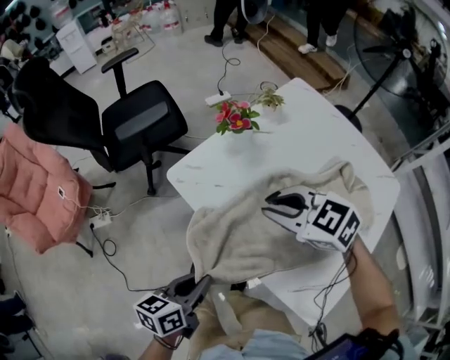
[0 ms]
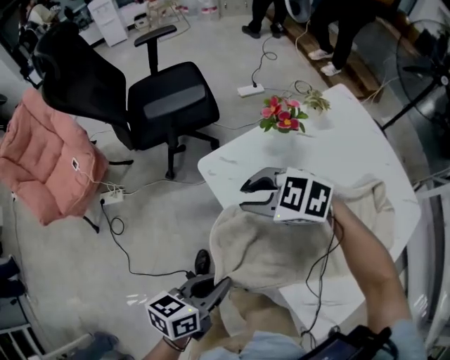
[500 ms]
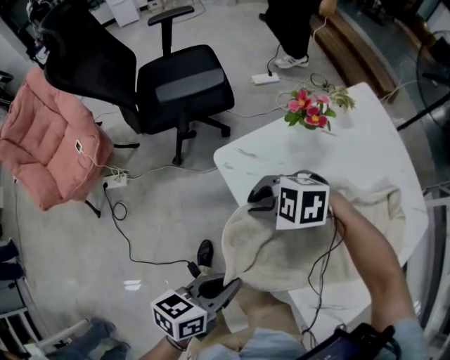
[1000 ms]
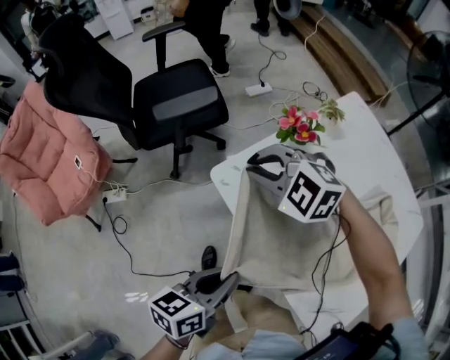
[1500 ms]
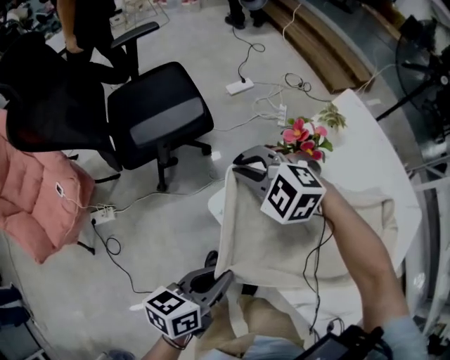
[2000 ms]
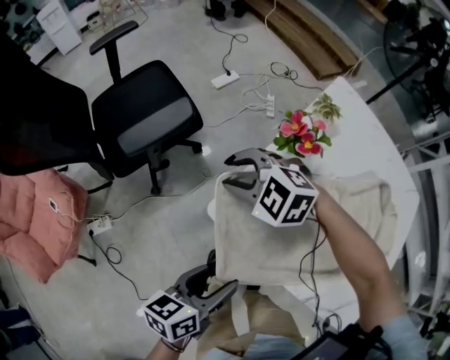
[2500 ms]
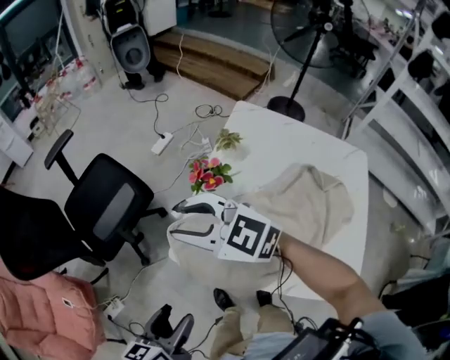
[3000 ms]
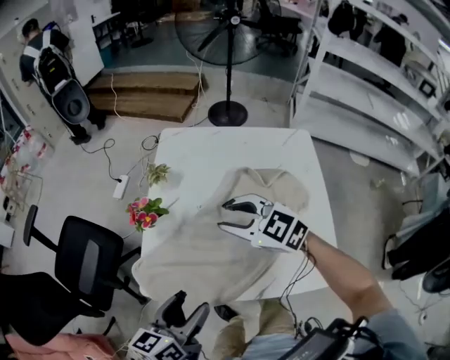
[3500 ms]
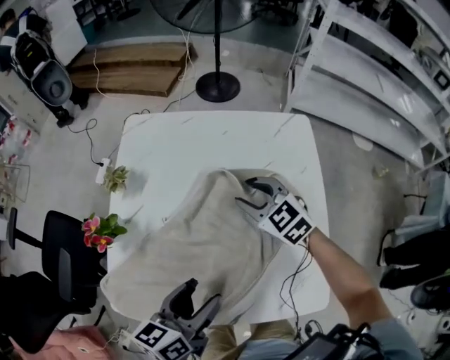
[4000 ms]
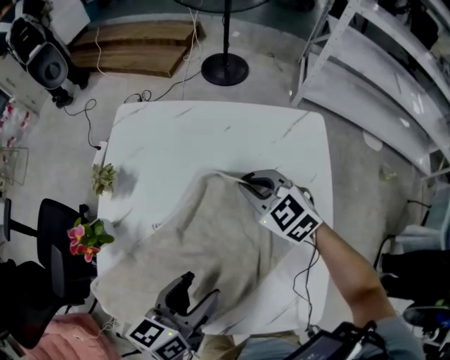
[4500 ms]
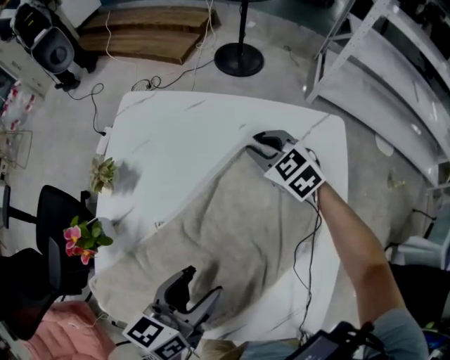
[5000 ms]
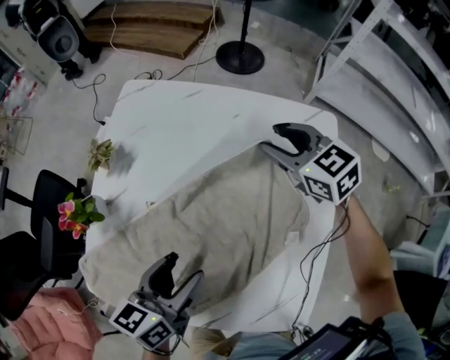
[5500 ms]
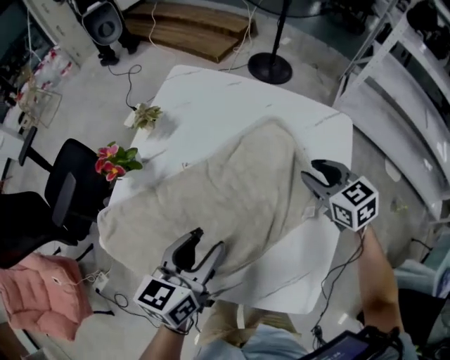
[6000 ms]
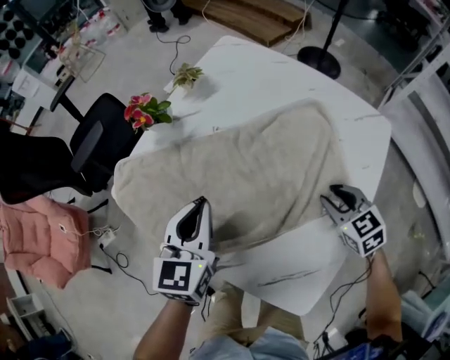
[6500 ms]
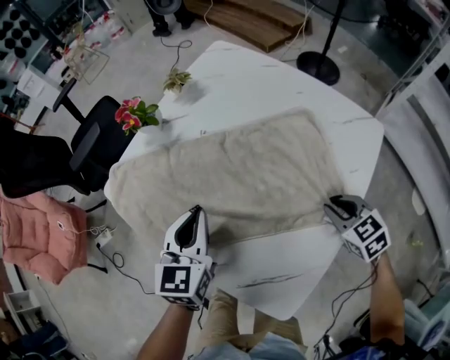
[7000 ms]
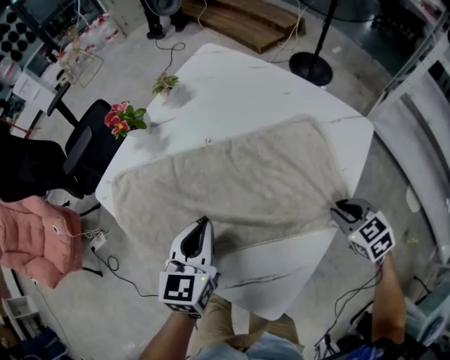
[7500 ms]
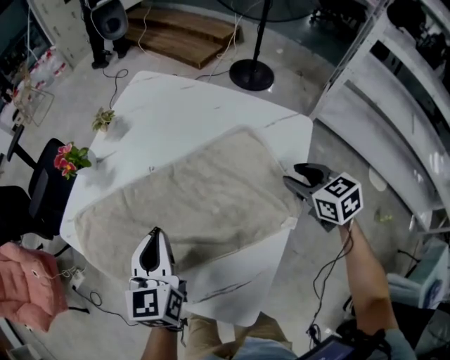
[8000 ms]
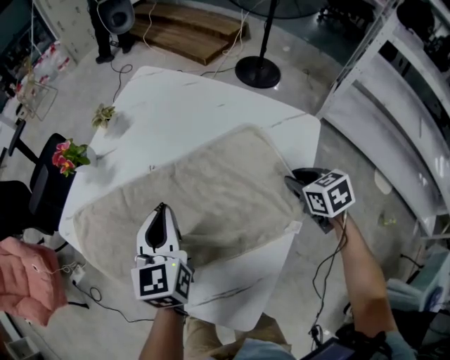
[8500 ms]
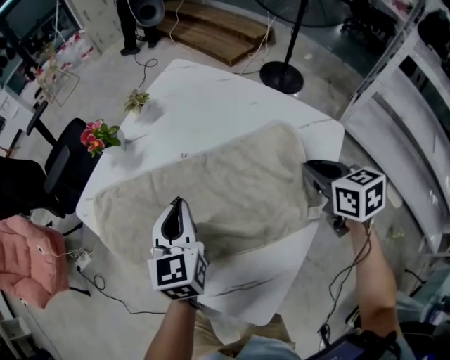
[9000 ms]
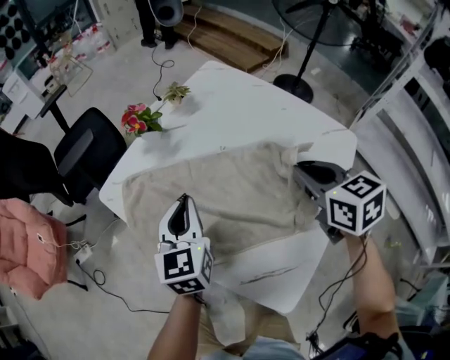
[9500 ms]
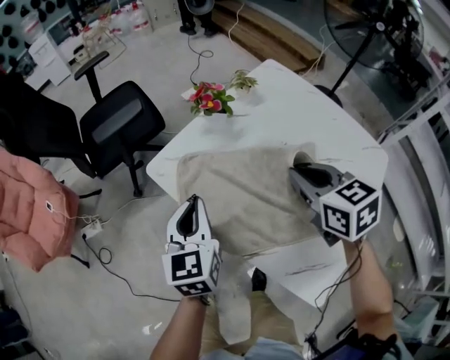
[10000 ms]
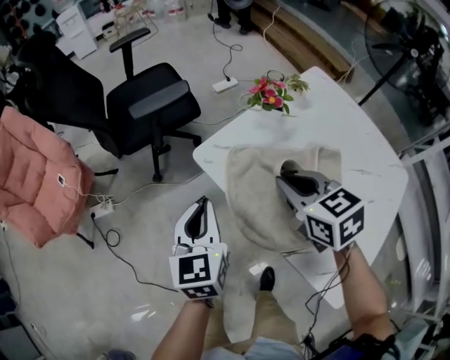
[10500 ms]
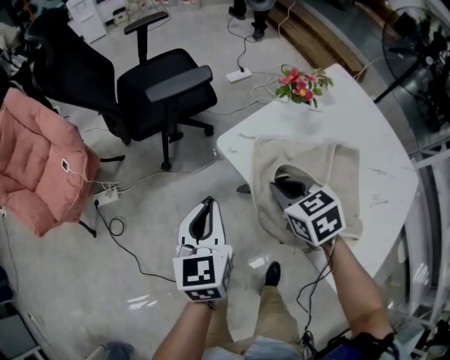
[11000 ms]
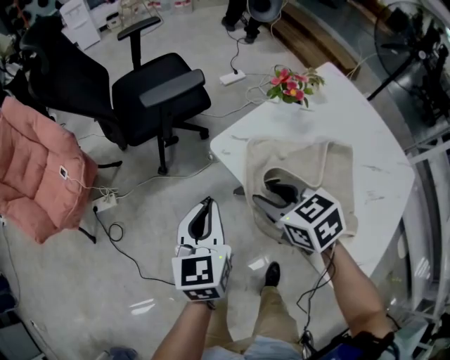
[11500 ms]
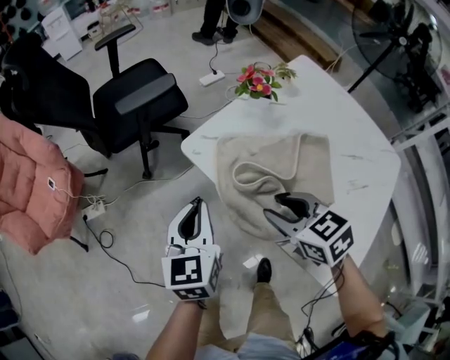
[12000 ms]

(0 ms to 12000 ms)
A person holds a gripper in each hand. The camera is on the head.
0 ms - 2000 ms: The left gripper ends up roughly 15 cm from where it was. Meanwhile the right gripper swings up and down, roughly 15 cm each way, with 2 reversals, and rotates about 30 degrees.
2000 ms - 4000 ms: The left gripper moves about 30 cm, changes its angle by some 40 degrees, and opens up. The right gripper moves about 15 cm upward and comes back, turns by some 80 degrees, and opens up.
4000 ms - 6000 ms: The left gripper reaches about 10 cm forward, then returns, and swivels some 20 degrees. The right gripper travels to the right by roughly 10 cm, travels forward and back again, some 15 cm each way, and closes and opens again.
6000 ms - 8000 ms: The left gripper changes place by approximately 5 cm, rotates approximately 30 degrees, and closes its fingers, while the right gripper travels downward and back again, about 10 cm each way.
8000 ms - 10000 ms: The left gripper shifts about 25 cm to the left. The right gripper shifts approximately 40 cm to the left, and closes its fingers.
10000 ms - 12000 ms: The right gripper goes approximately 20 cm to the left and downward, and opens. Meanwhile the left gripper shifts some 10 cm to the left.

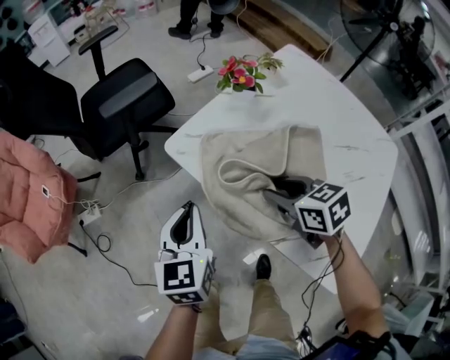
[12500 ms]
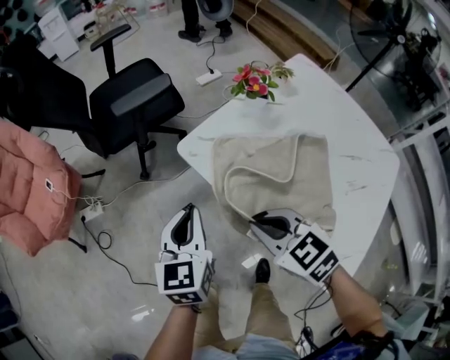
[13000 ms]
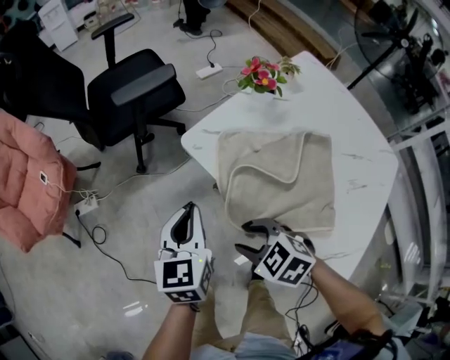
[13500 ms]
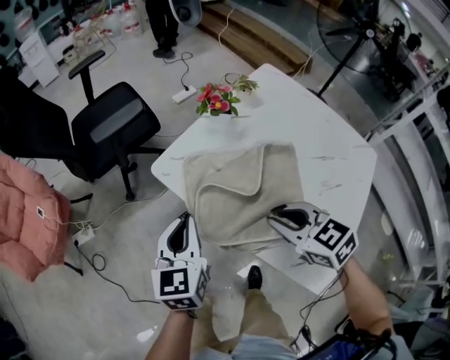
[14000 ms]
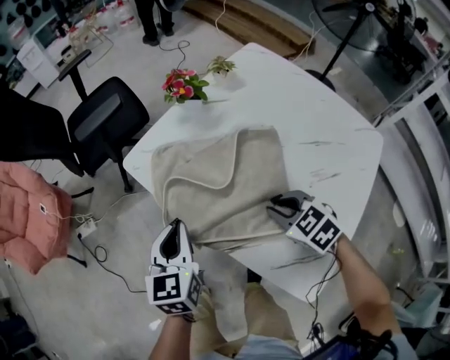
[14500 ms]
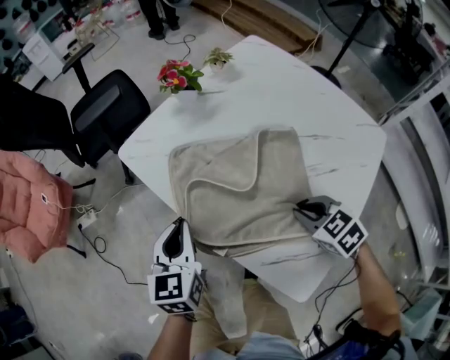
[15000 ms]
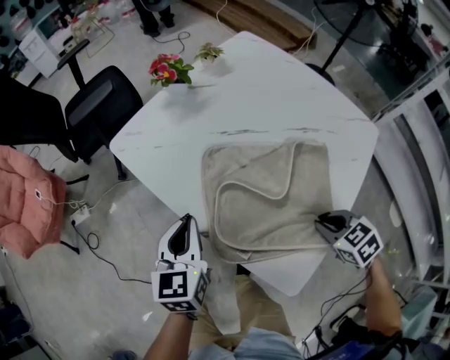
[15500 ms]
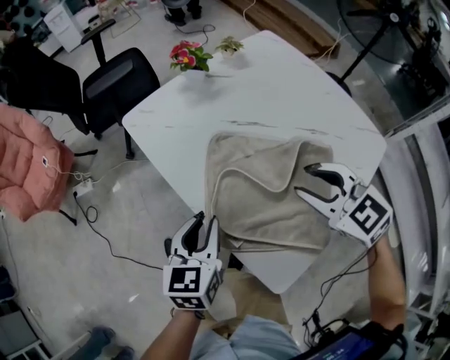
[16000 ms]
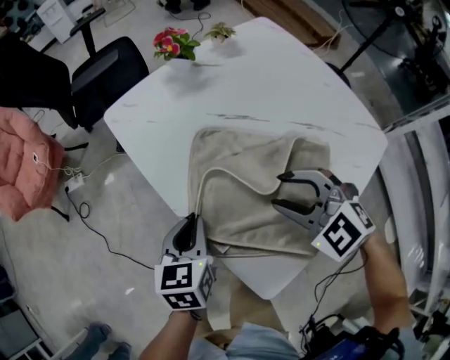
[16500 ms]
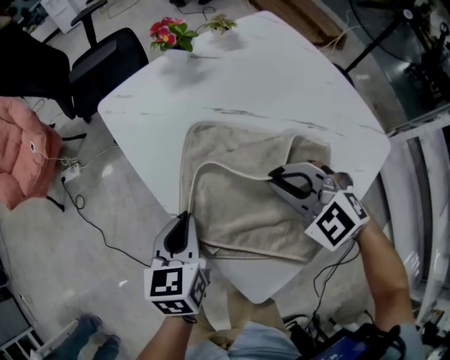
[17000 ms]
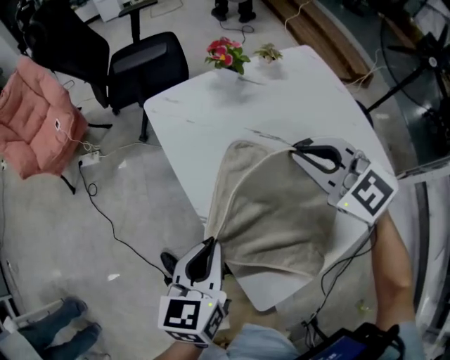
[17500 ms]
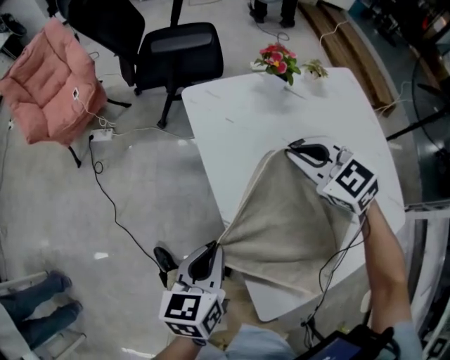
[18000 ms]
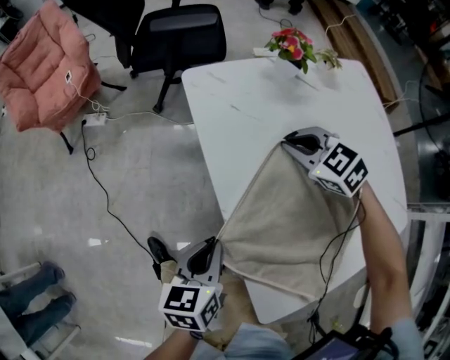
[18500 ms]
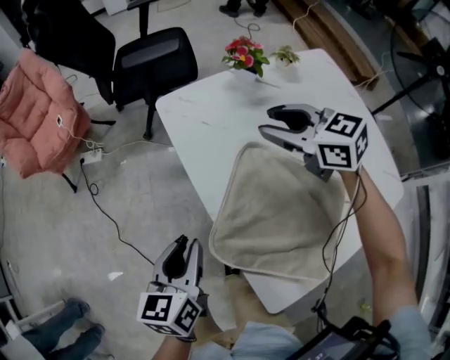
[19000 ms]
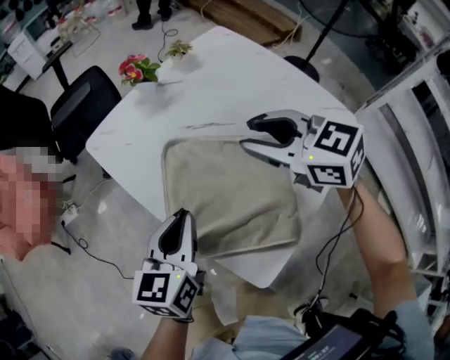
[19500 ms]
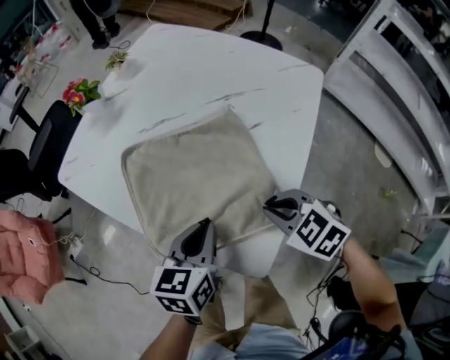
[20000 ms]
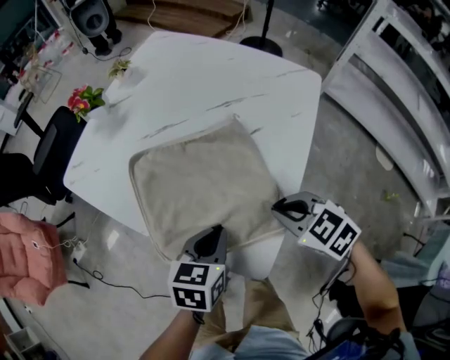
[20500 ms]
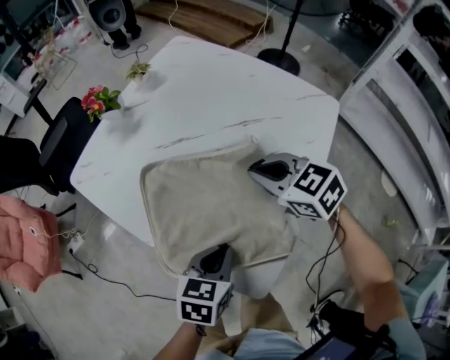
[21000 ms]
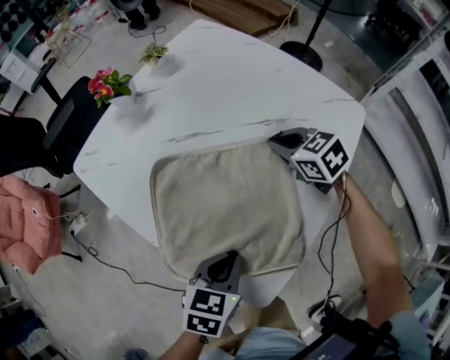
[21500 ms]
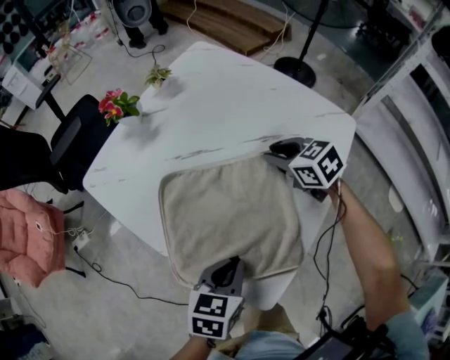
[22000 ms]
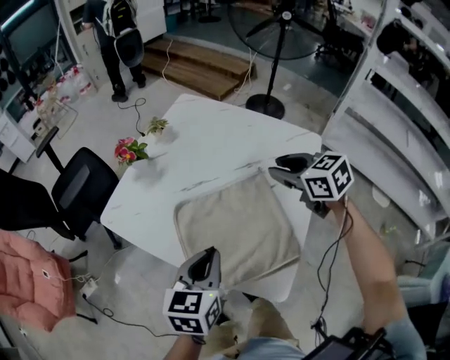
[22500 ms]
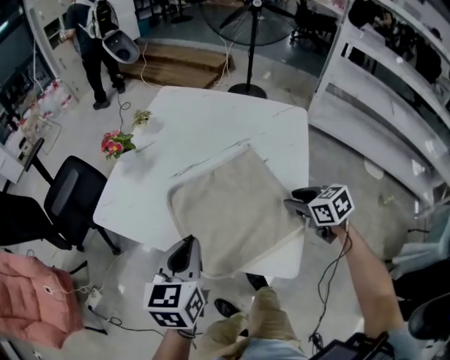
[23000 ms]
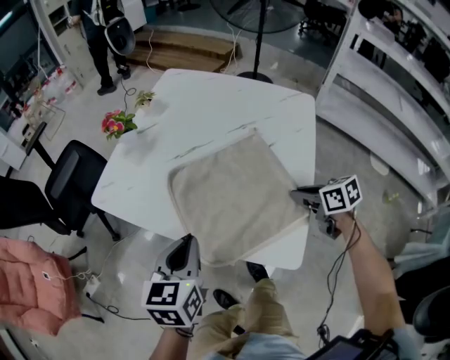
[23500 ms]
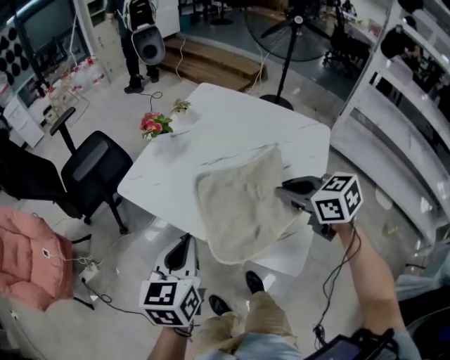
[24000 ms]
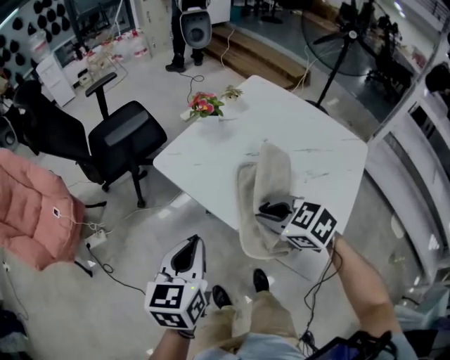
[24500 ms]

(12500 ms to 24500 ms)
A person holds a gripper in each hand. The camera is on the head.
12500 ms - 14500 ms: The grippers both shift to the right and backward by some 10 cm. The right gripper changes its angle by about 20 degrees, and closes.
14500 ms - 16500 ms: The left gripper goes approximately 15 cm backward and to the right. The right gripper shifts roughly 10 cm upward, travels backward and back again, some 15 cm each way, changes its angle by some 40 degrees, and opens up.
16500 ms - 18500 ms: The right gripper is displaced forward by roughly 20 cm, and closes up, while the left gripper goes about 5 cm to the left, travels upward and back again, approximately 10 cm each way, and changes its angle by about 20 degrees.
18500 ms - 20500 ms: The right gripper travels upward and back again, some 15 cm each way, twists some 40 degrees clockwise, seen from behind, and opens and closes again, while the left gripper goes upward and returns, about 10 cm each way, and turns by approximately 60 degrees.
20500 ms - 22500 ms: The right gripper shifts some 25 cm forward and upward, rotates roughly 20 degrees, and opens up; the left gripper heads upward, to the left and forward, covering about 15 cm.
22500 ms - 24500 ms: The left gripper ends up some 20 cm from where it was; the right gripper goes up and down, some 15 cm each way, reversing 2 times, swivels some 30 degrees, and closes its fingers.

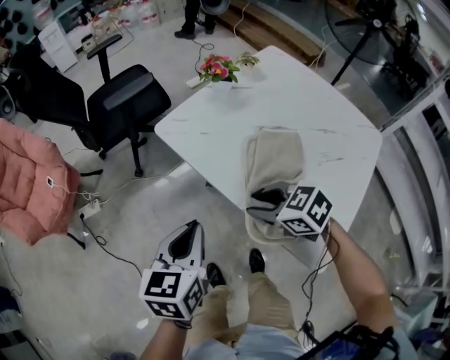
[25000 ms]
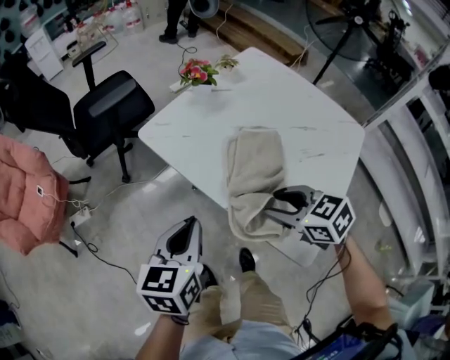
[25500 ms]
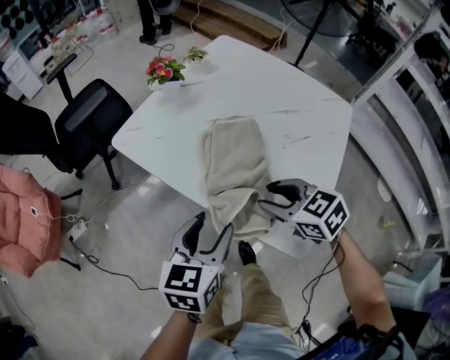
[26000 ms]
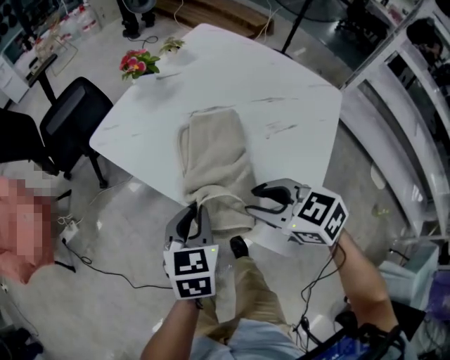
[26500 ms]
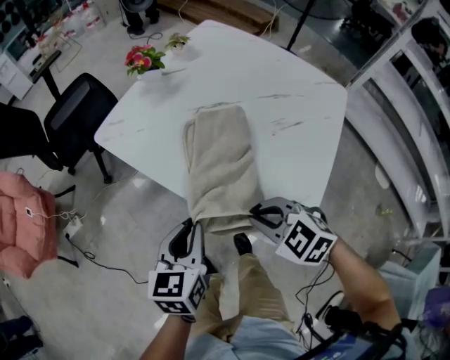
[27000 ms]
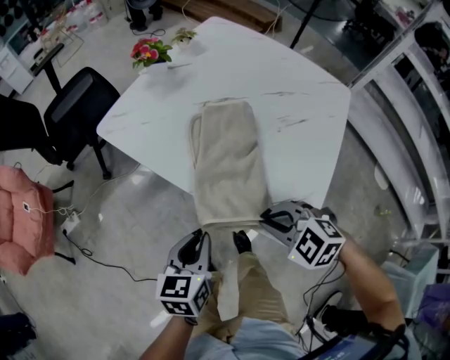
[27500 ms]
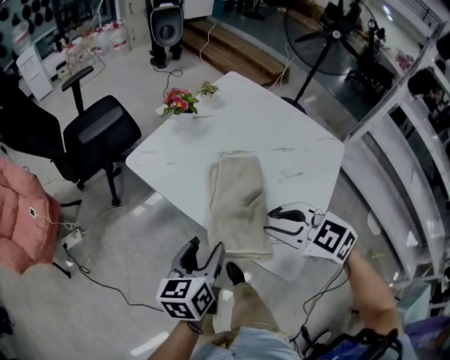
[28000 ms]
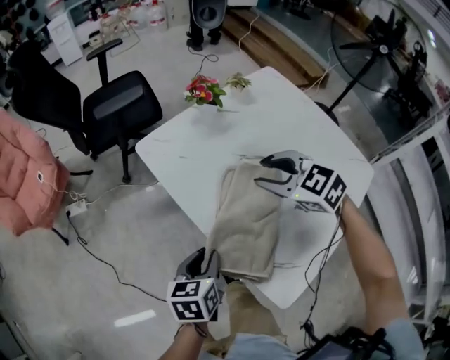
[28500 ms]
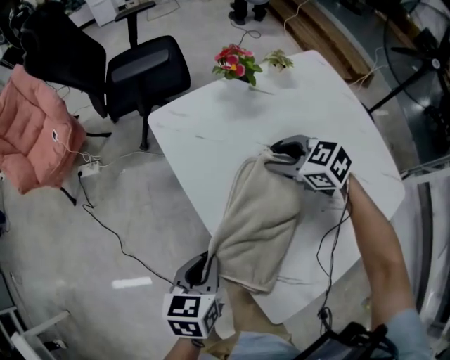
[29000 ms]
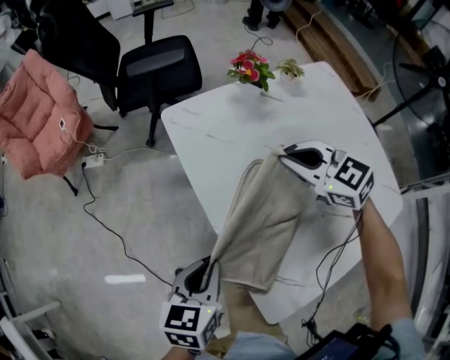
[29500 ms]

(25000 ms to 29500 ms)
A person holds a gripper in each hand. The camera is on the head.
25000 ms - 27000 ms: The right gripper goes about 15 cm backward and to the right, and closes; the left gripper shifts some 10 cm to the right, and opens, then closes again.
27000 ms - 29500 ms: The right gripper moves up and down over approximately 15 cm, changing direction 2 times, changes its angle by approximately 30 degrees, and opens and closes again, while the left gripper goes up and down, approximately 10 cm each way, reversing 3 times, turns by approximately 30 degrees, and opens, then closes once more.
